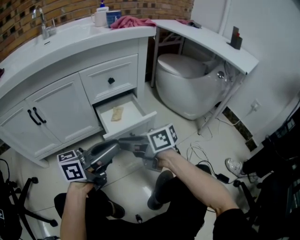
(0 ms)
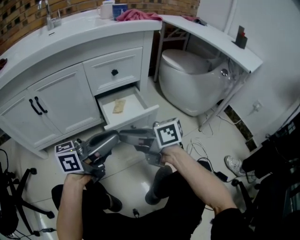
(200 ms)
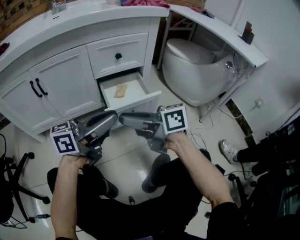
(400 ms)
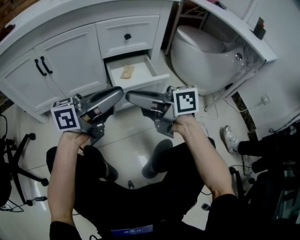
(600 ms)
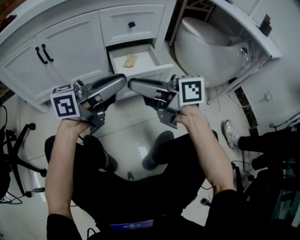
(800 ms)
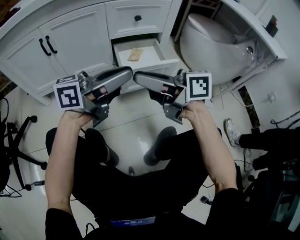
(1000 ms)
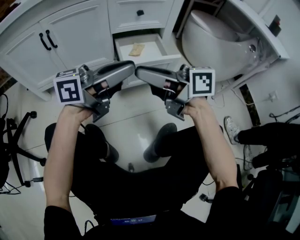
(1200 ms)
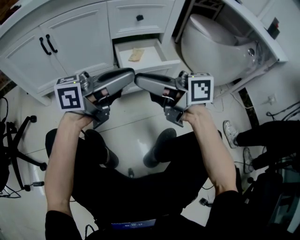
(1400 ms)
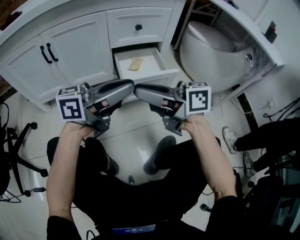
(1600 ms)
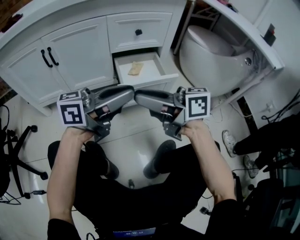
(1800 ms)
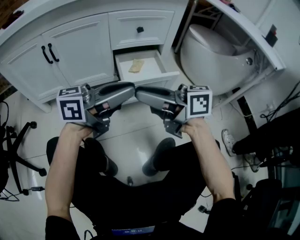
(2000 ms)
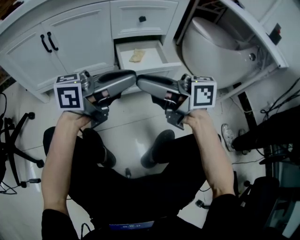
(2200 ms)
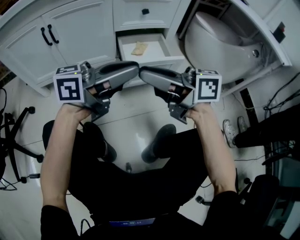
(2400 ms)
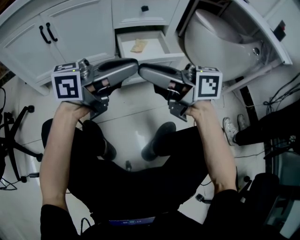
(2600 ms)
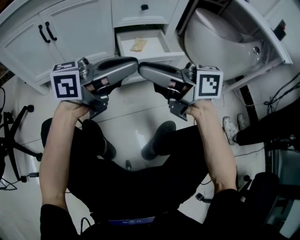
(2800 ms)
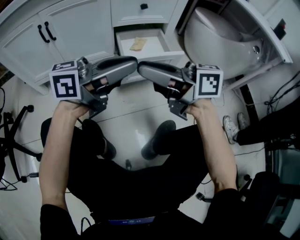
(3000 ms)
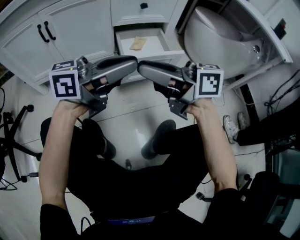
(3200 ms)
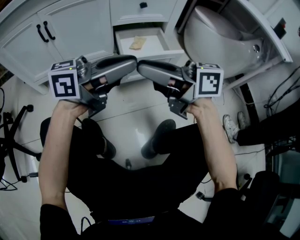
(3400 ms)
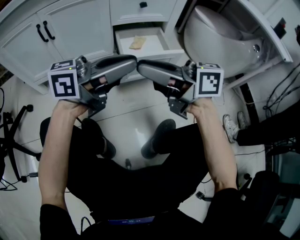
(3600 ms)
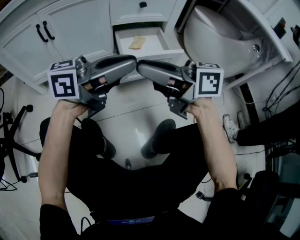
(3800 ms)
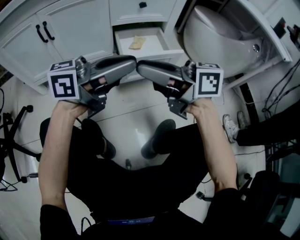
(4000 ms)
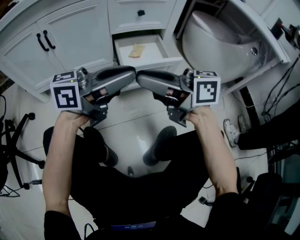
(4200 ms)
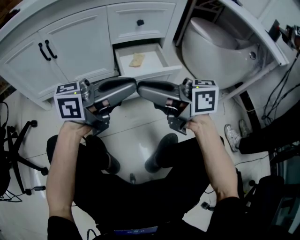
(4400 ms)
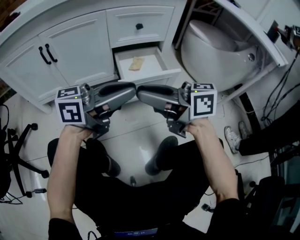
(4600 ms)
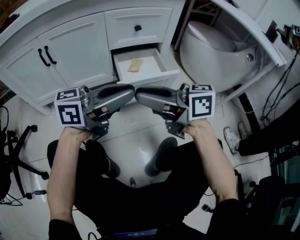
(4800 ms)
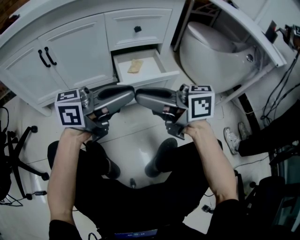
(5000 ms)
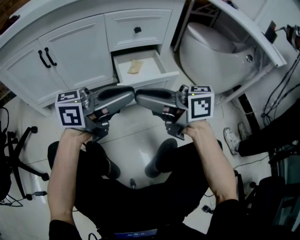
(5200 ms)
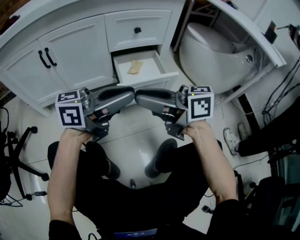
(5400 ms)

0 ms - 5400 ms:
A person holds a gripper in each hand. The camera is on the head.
0 ms - 1400 ms: The right gripper moves upward, roughly 5 cm.
1400 ms - 4000 ms: Neither gripper changes place.
4000 ms - 5400 ms: Neither gripper changes place.

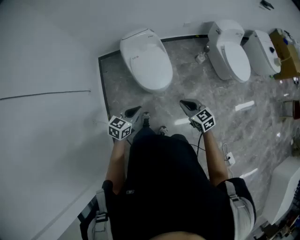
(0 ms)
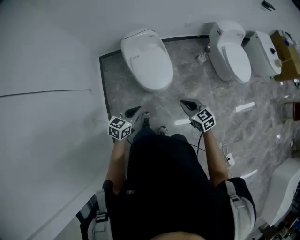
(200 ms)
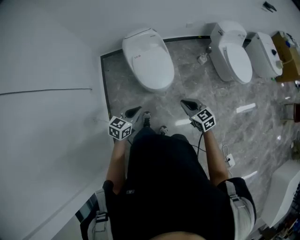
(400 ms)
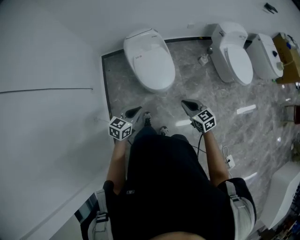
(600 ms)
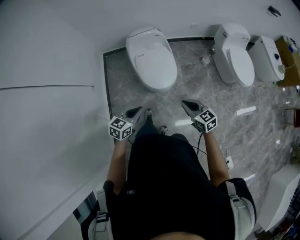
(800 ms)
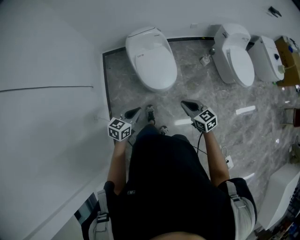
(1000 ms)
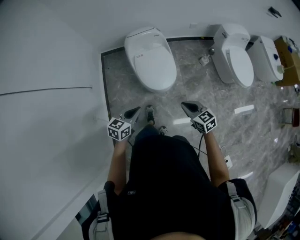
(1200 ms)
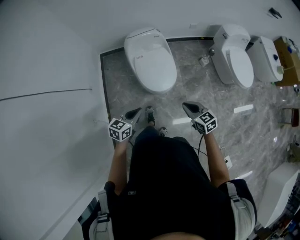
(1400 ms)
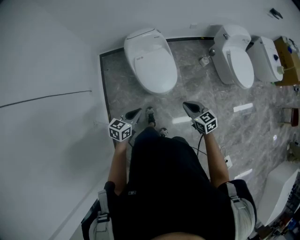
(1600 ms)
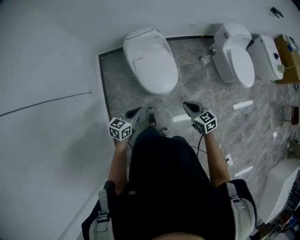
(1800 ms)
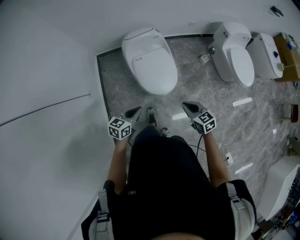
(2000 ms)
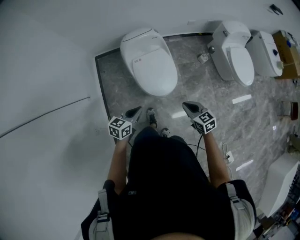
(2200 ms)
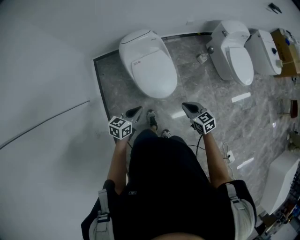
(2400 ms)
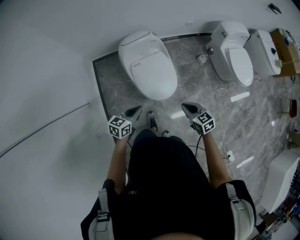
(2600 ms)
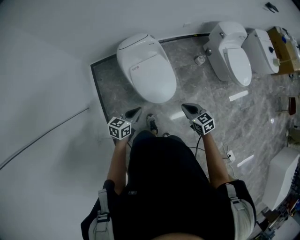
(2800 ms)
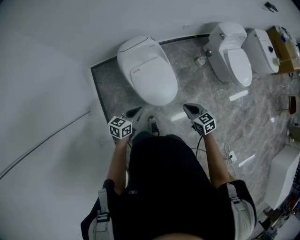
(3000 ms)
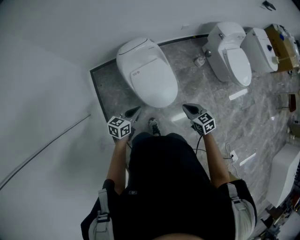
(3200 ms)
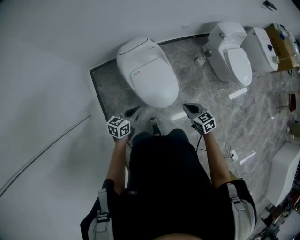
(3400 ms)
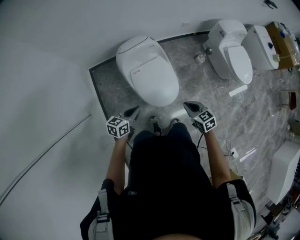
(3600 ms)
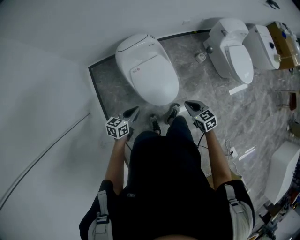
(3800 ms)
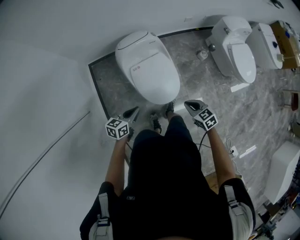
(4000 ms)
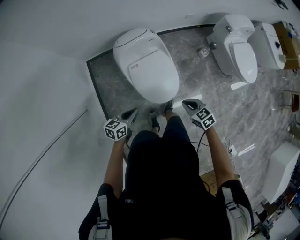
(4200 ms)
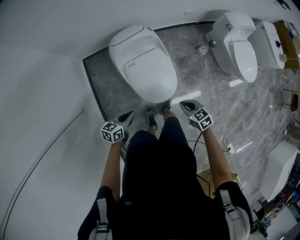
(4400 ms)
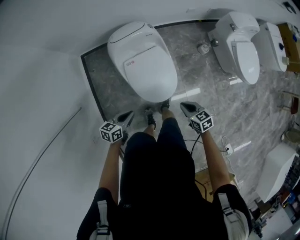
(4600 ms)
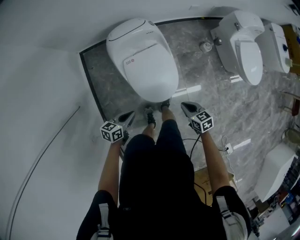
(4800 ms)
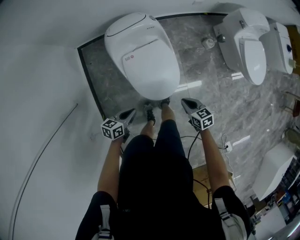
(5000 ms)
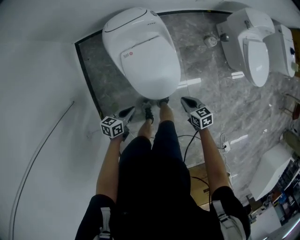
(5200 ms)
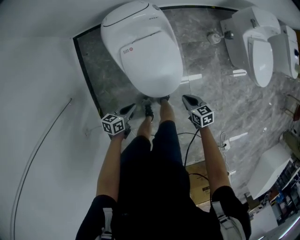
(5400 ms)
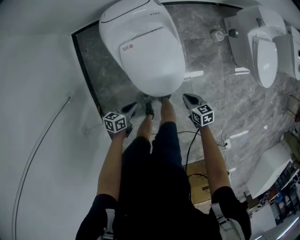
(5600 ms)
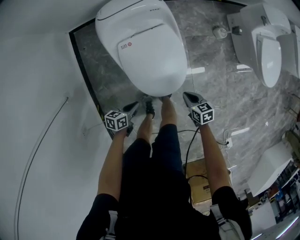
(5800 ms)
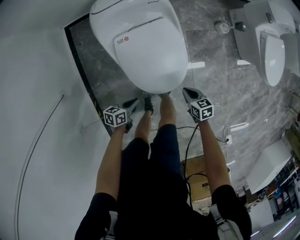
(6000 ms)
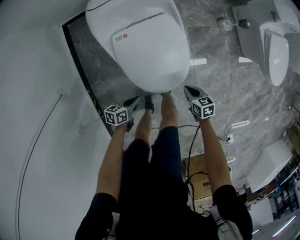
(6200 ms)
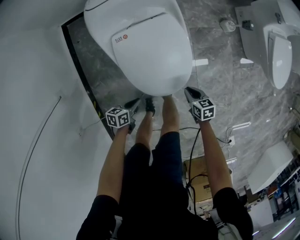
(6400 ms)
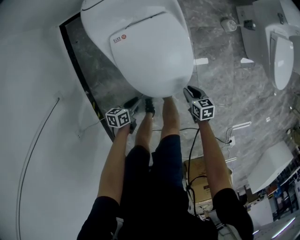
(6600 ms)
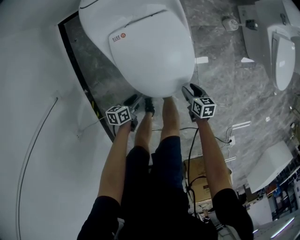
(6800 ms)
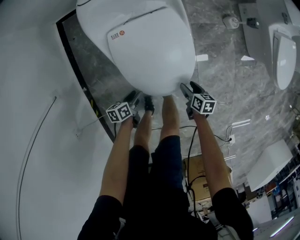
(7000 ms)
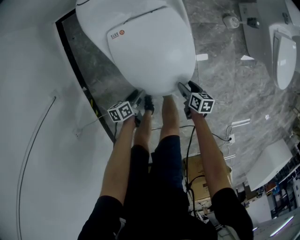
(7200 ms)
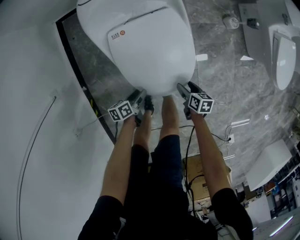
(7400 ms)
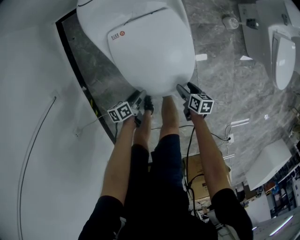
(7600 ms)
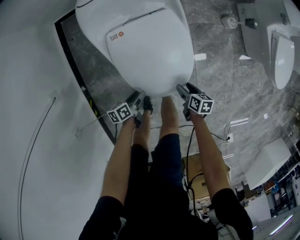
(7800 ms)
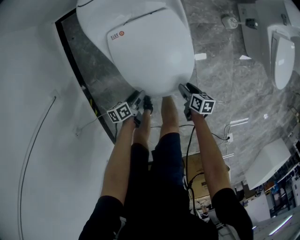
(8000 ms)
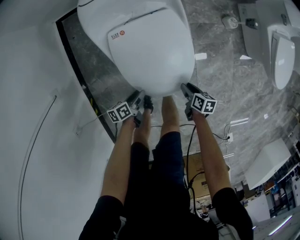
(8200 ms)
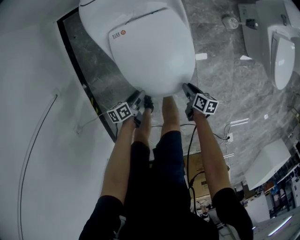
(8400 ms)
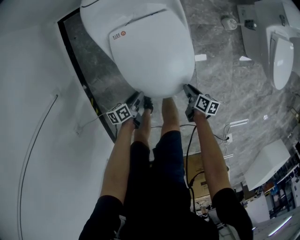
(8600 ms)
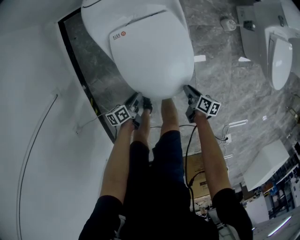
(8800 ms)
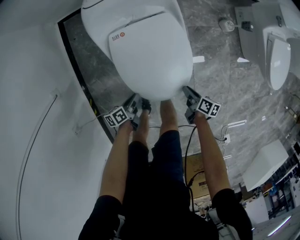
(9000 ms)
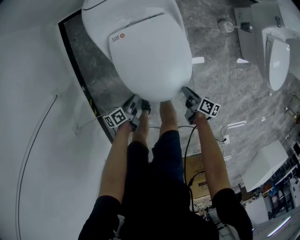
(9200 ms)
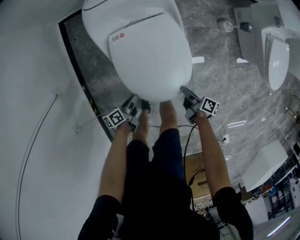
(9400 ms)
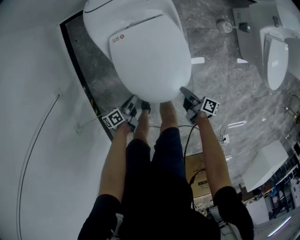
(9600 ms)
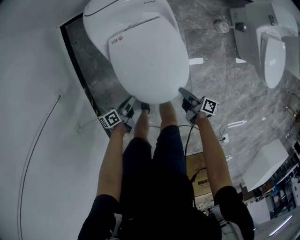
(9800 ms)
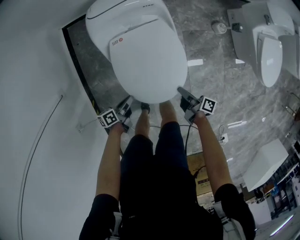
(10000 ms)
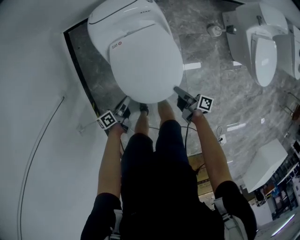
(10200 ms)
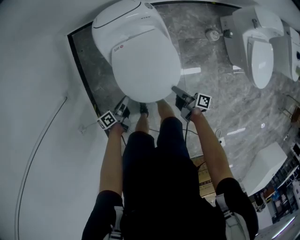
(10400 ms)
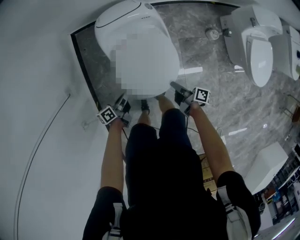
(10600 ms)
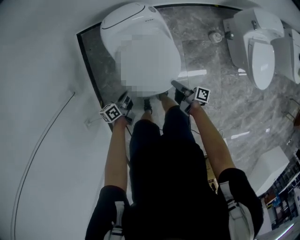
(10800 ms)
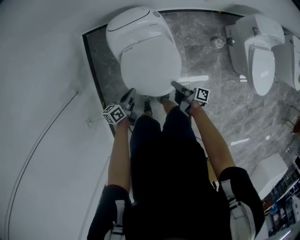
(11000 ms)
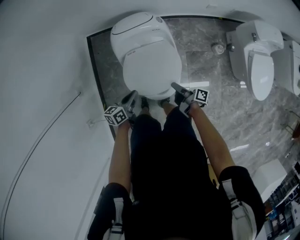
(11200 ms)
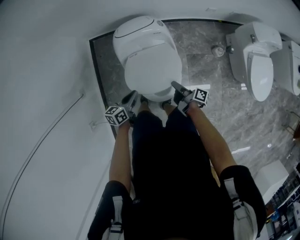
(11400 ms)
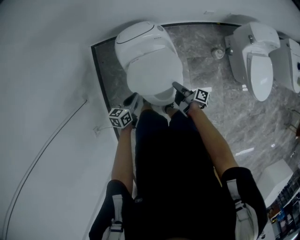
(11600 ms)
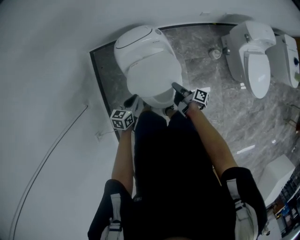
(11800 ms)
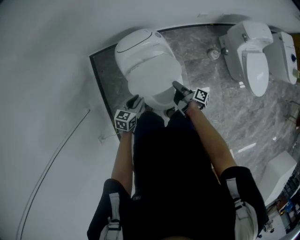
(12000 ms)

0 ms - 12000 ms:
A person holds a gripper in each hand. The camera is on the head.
0 ms - 1600 ms: The left gripper ends up approximately 10 cm from where it was.
1600 ms - 3000 ms: The left gripper shifts by approximately 20 cm.
3000 ms - 4400 ms: The left gripper goes some 10 cm downward.
4400 ms - 6000 ms: The left gripper is displaced downward by some 30 cm, and turns by some 20 degrees.
6000 ms - 7600 ms: The left gripper travels downward by some 10 cm, swivels about 30 degrees, and opens its fingers.
7600 ms - 9000 ms: The left gripper closes up.
9000 ms - 10400 ms: The left gripper heads upward, covering roughly 15 cm.
10400 ms - 12000 ms: The left gripper is displaced upward by roughly 15 cm, and rolls clockwise, seen from behind, by some 60 degrees.

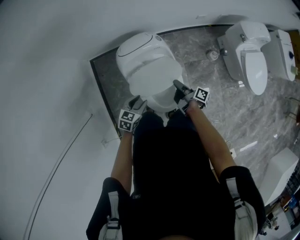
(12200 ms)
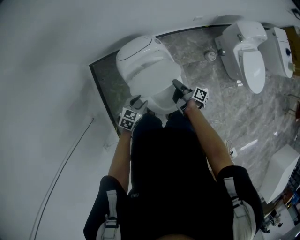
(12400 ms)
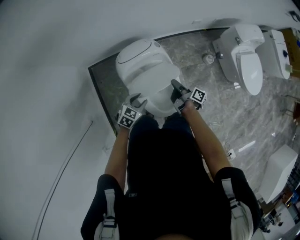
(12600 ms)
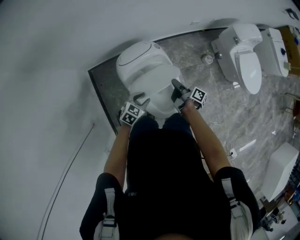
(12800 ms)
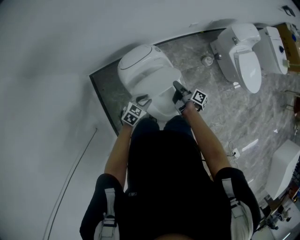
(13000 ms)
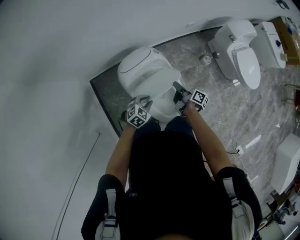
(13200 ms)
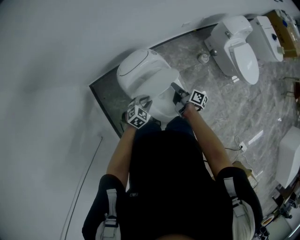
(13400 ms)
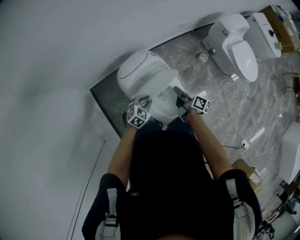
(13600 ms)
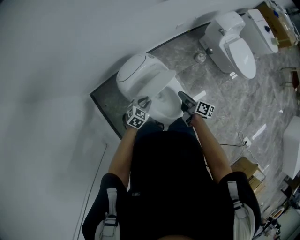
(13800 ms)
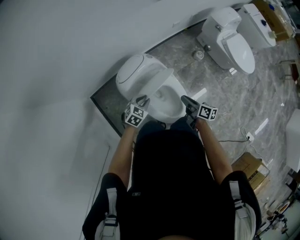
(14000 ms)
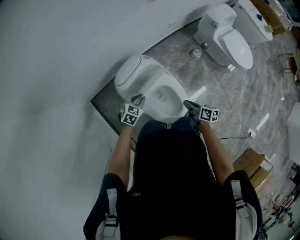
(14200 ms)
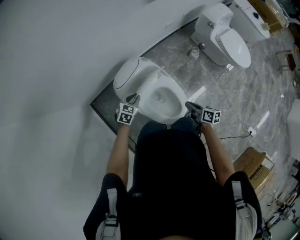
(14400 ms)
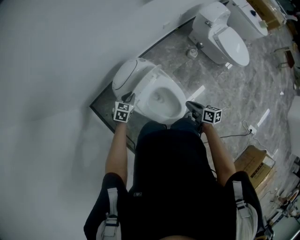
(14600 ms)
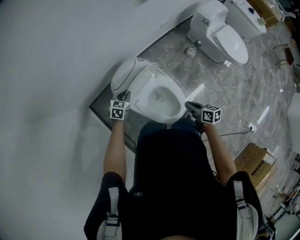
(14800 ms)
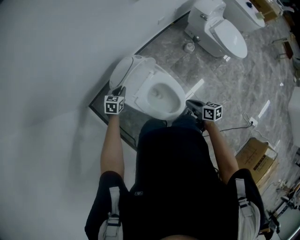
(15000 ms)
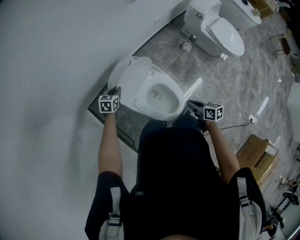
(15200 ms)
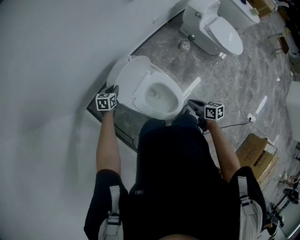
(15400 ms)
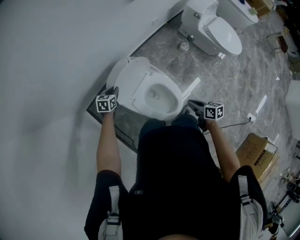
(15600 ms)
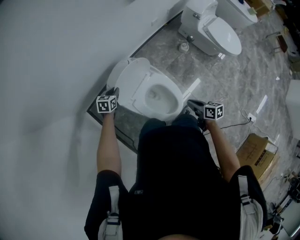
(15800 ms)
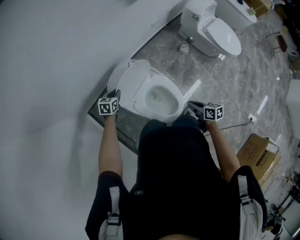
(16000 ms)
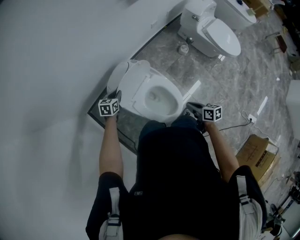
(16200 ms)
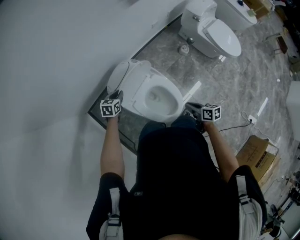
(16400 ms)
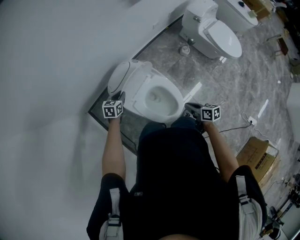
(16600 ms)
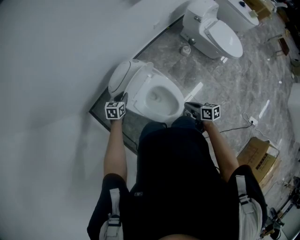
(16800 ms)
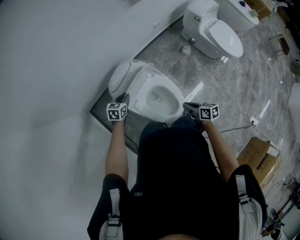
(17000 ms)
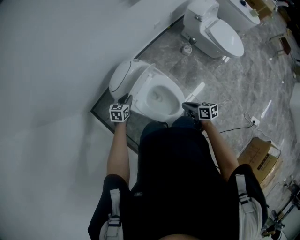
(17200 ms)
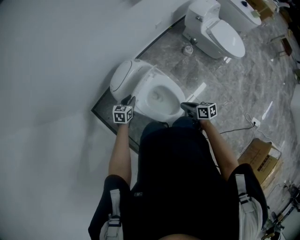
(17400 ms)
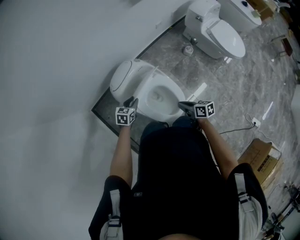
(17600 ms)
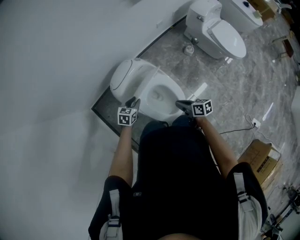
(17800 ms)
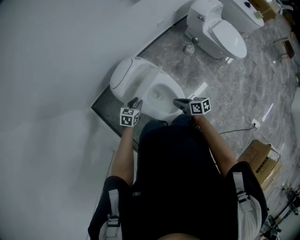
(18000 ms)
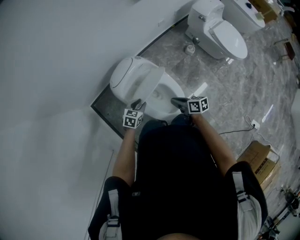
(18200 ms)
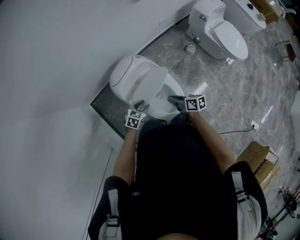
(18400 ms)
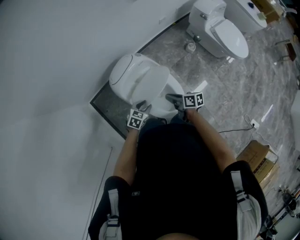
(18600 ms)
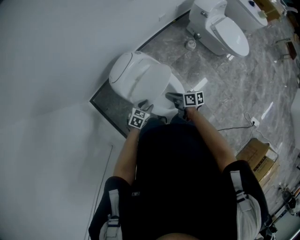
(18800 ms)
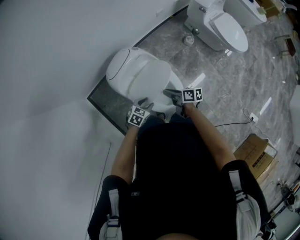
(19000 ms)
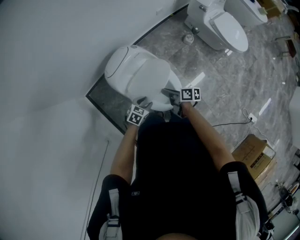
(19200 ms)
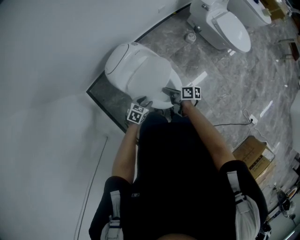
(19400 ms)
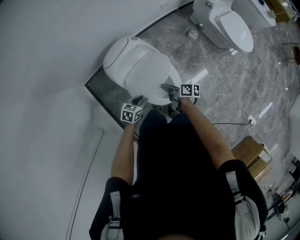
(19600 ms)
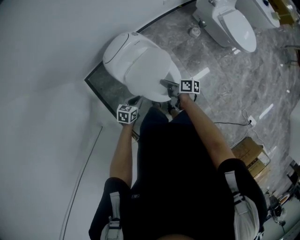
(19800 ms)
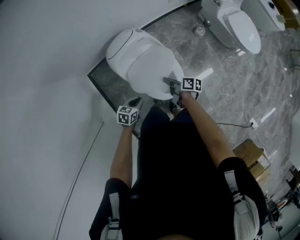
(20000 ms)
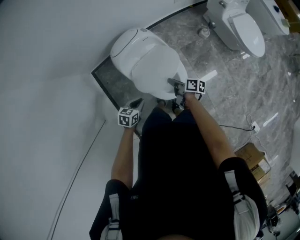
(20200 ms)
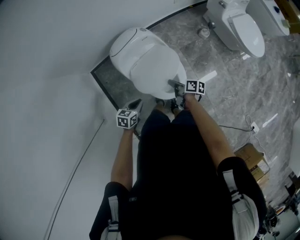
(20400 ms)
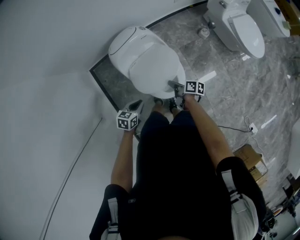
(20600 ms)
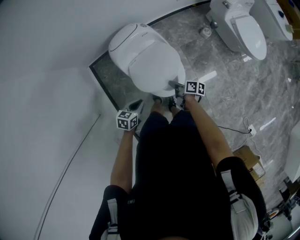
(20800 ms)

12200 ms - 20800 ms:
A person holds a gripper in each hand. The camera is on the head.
12200 ms - 13600 ms: The left gripper moves roughly 10 cm, and swivels about 40 degrees.
13600 ms - 15000 ms: The left gripper ends up approximately 15 cm from where it was.
16600 ms - 18000 ms: The left gripper ends up approximately 10 cm from where it was.
18000 ms - 19400 ms: The left gripper shifts by roughly 15 cm.
19400 ms - 20800 ms: The left gripper moves some 10 cm, turns by some 30 degrees, and closes its fingers.
